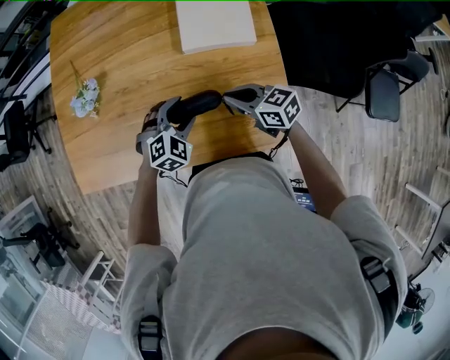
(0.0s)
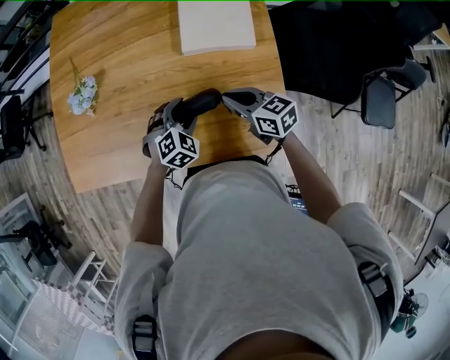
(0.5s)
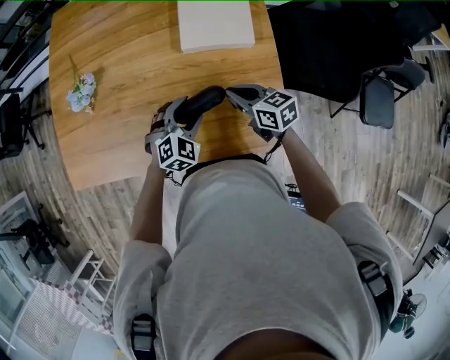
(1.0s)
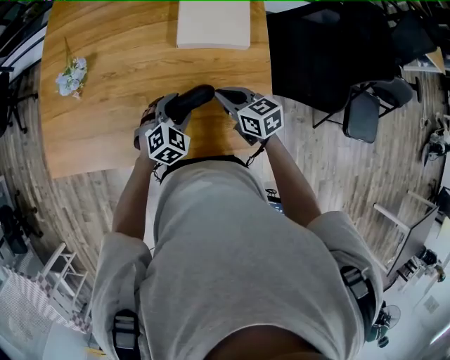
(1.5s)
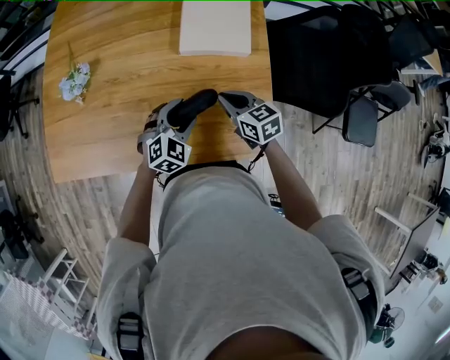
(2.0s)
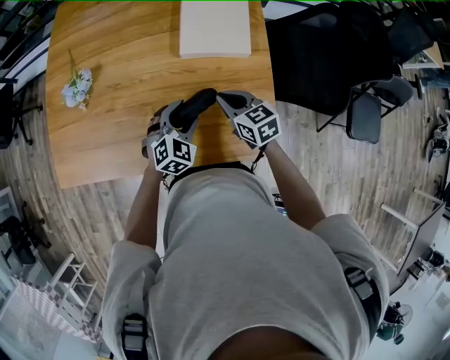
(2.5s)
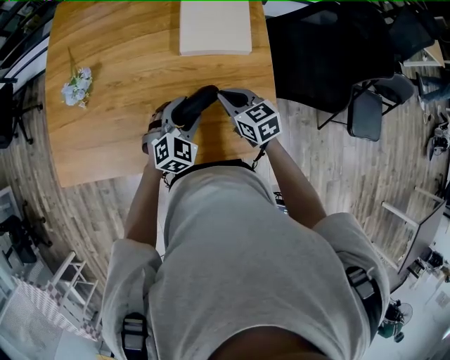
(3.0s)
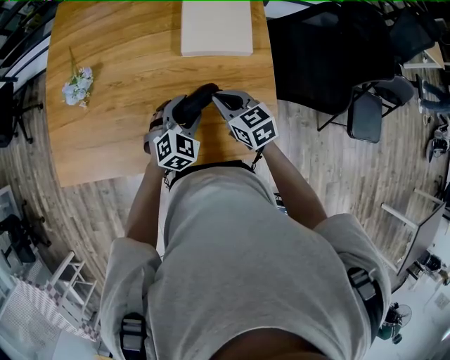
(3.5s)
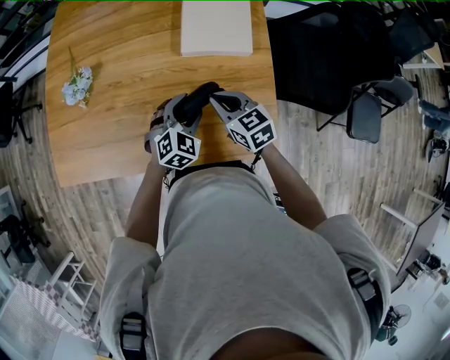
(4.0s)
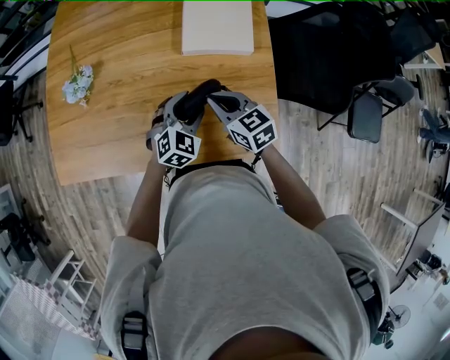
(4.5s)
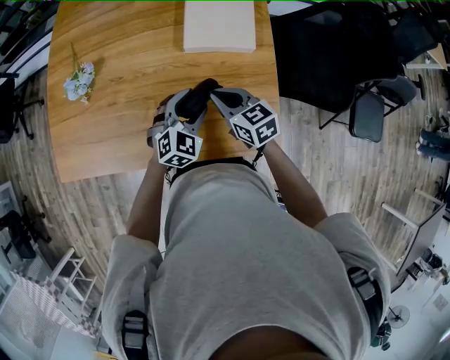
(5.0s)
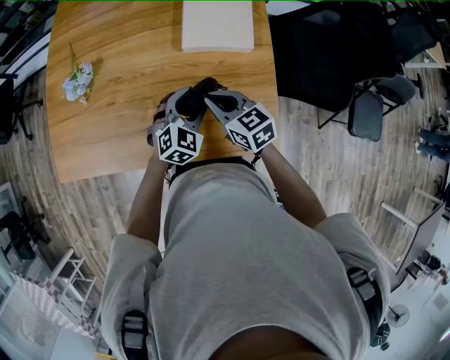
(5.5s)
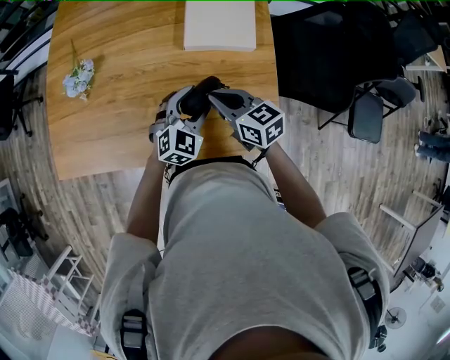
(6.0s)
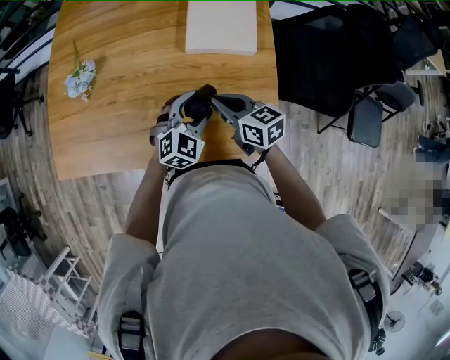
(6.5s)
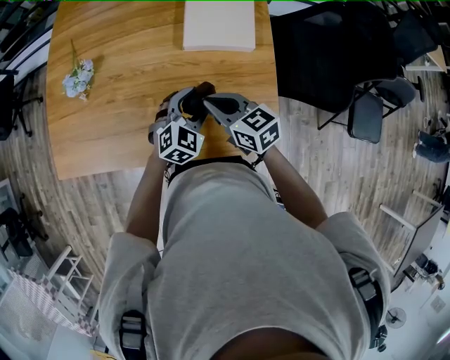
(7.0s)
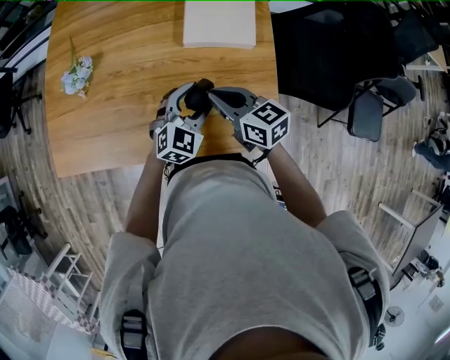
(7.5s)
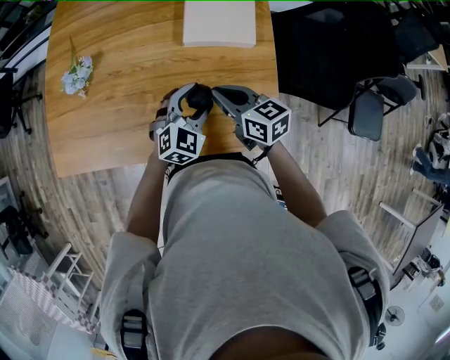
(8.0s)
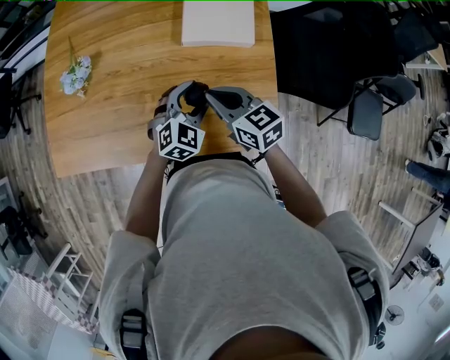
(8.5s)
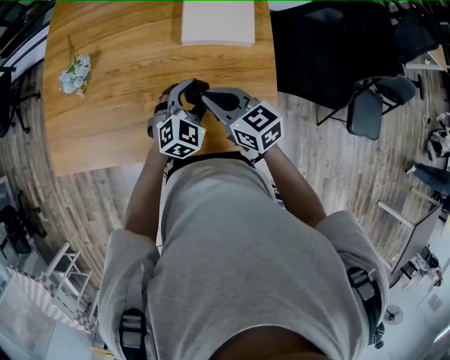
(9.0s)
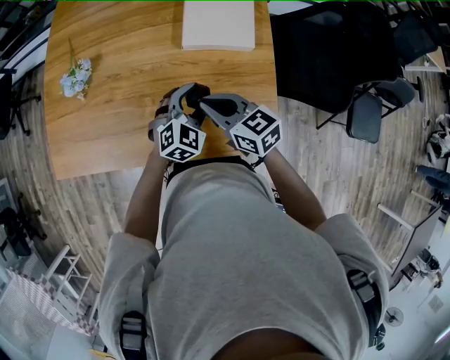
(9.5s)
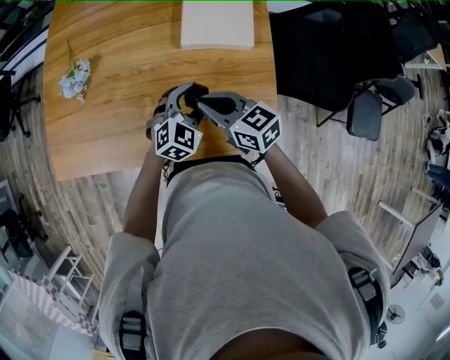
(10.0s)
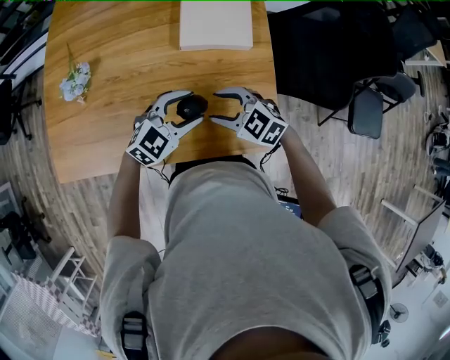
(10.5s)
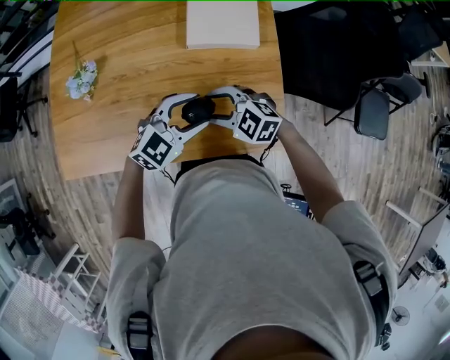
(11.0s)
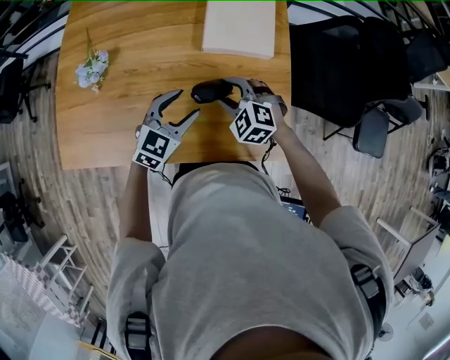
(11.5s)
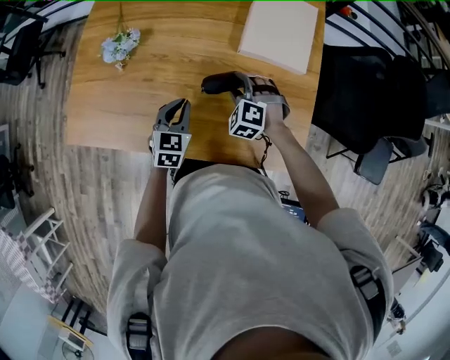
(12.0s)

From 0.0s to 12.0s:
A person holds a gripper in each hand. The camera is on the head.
From 0.0s to 2.0s: The grippers stay close to where they were, moving slightly.
From 2.0s to 4.0s: The grippers make only small movements.
From 4.0s to 6.0s: There are only small adjustments of the grippers.
From 6.0s to 10.0s: The grippers move only a little.
From 10.0s to 12.0s: The left gripper goes upward and returns, some 5 cm each way, rotates some 40 degrees, and closes up. The right gripper heads downward, covering approximately 10 cm, twists about 60 degrees counterclockwise, seen from behind, and opens up.

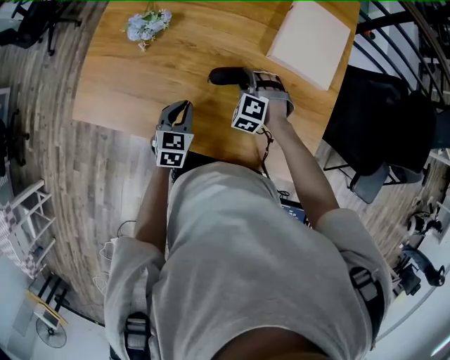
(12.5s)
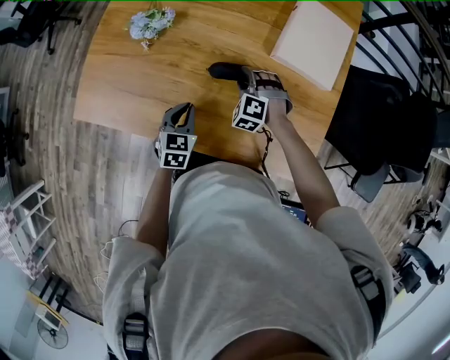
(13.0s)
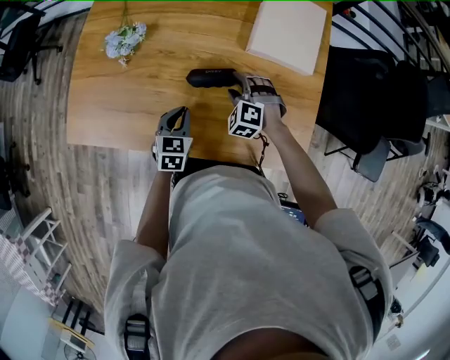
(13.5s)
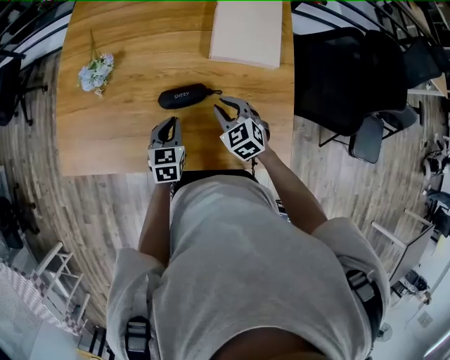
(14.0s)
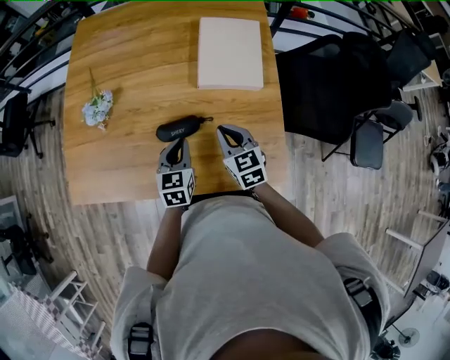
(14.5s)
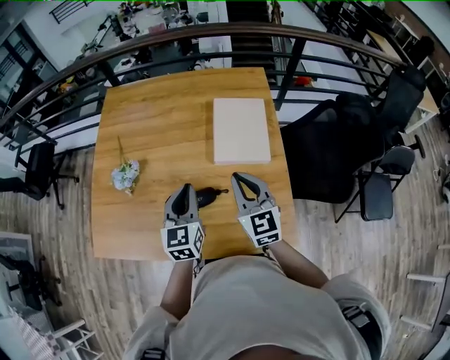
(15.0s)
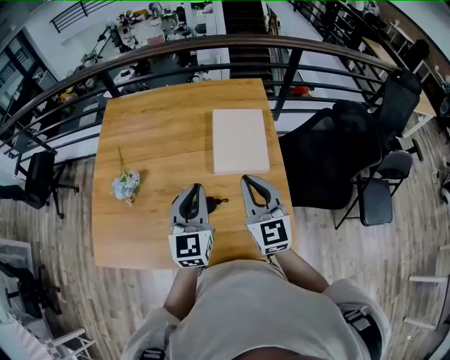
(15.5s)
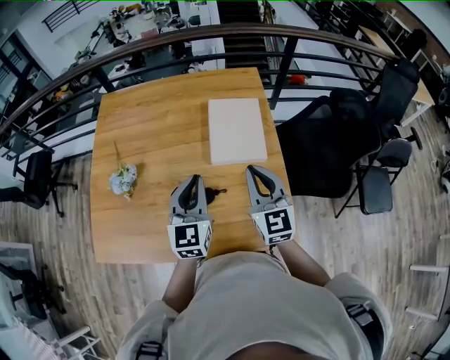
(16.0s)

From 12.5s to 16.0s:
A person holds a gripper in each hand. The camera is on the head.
From 12.5s to 14.5s: The left gripper goes approximately 15 cm to the right and upward; the right gripper goes about 20 cm upward, to the right and backward, rolls clockwise, seen from behind, by approximately 70 degrees, and closes.
From 14.5s to 16.0s: Both grippers travel together upward, about 20 cm. The right gripper changes its angle by about 30 degrees, while the left gripper rotates approximately 30 degrees.

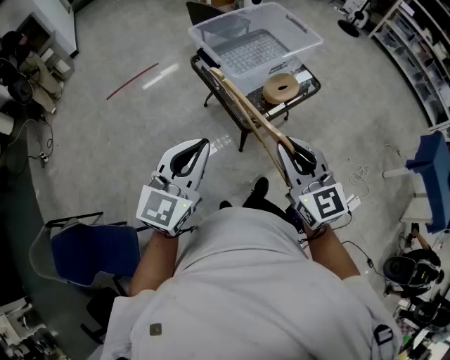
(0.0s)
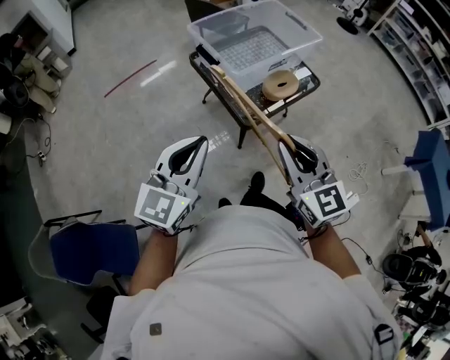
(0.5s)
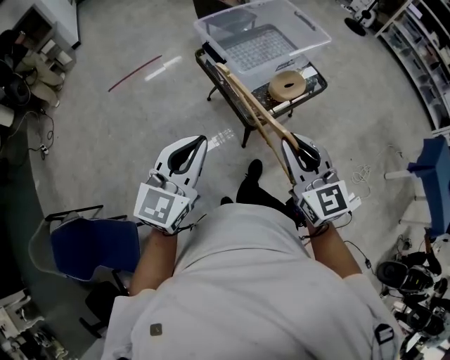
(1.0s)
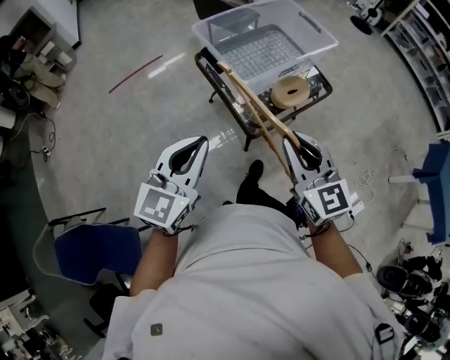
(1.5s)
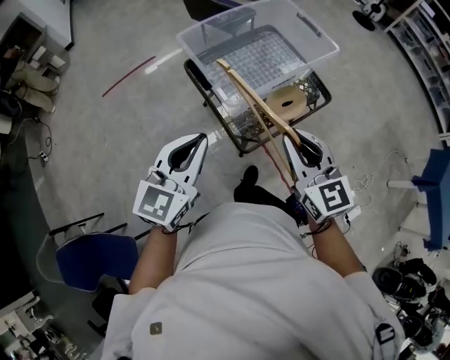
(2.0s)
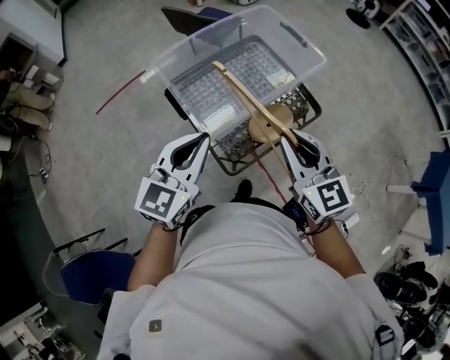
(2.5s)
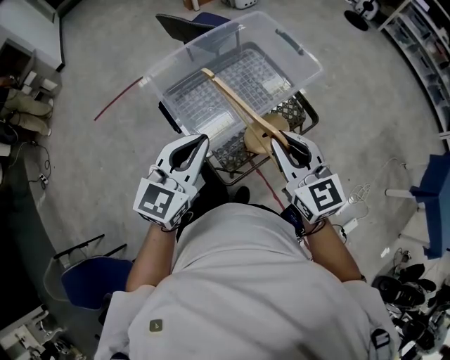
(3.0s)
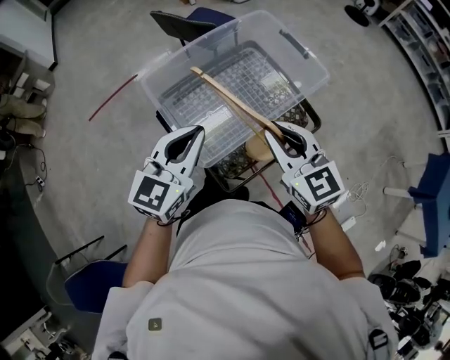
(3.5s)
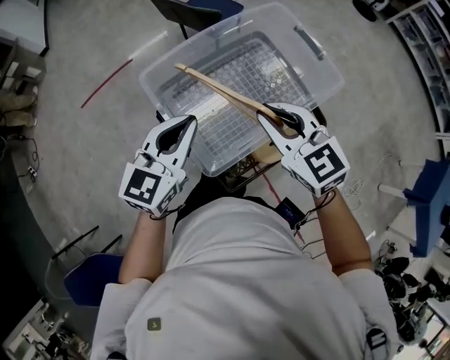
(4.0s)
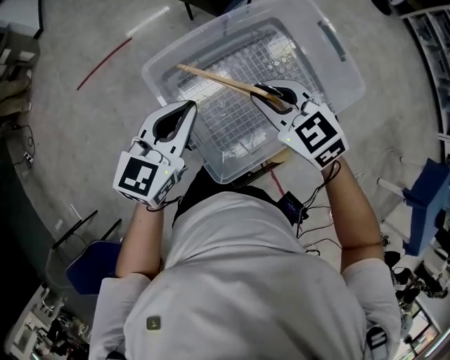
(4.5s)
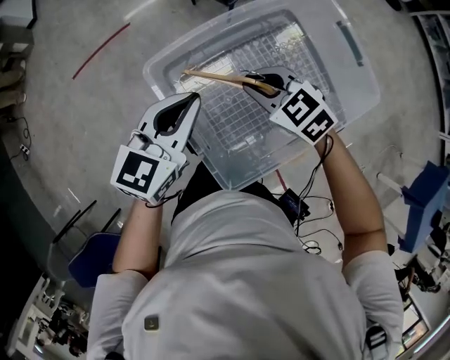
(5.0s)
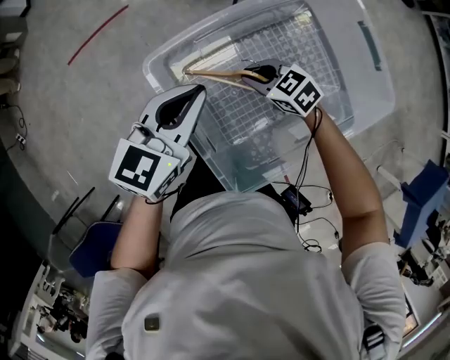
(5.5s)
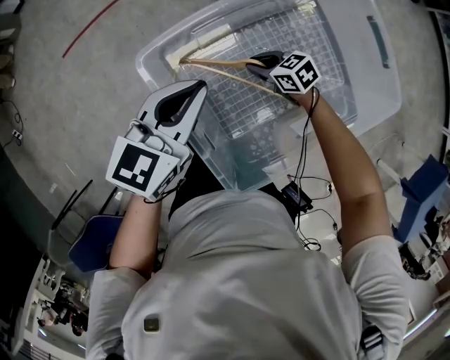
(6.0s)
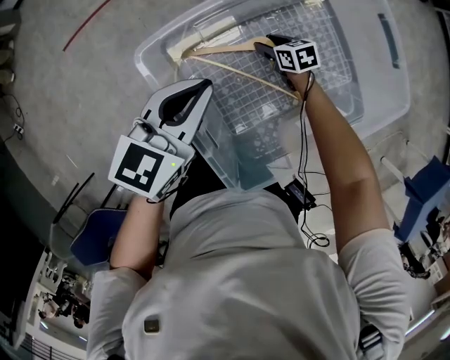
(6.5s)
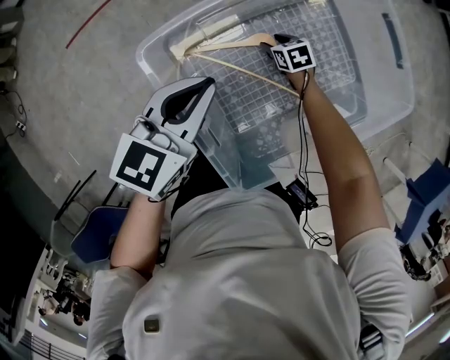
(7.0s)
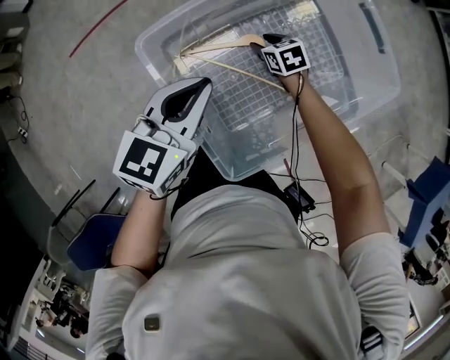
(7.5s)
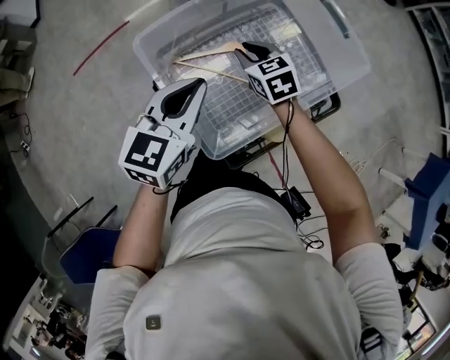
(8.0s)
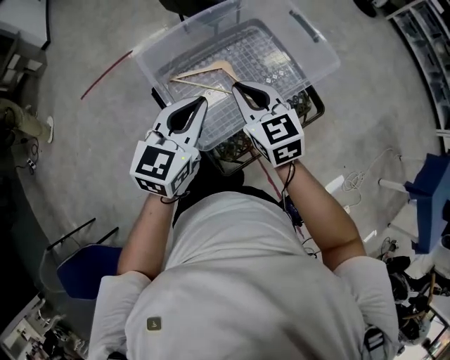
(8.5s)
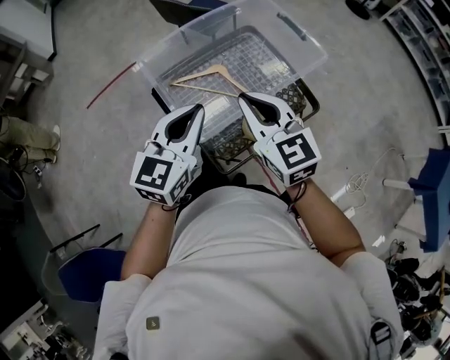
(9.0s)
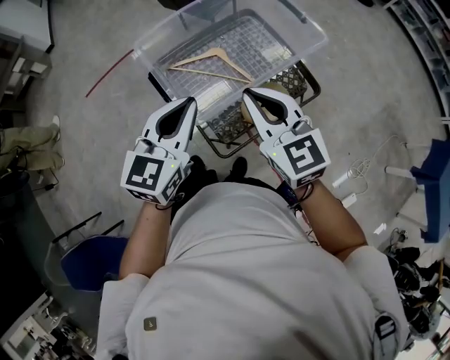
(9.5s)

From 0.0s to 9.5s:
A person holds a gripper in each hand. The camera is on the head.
From 0.0s to 2.0s: The two grippers go roughly 20 cm forward.
From 2.0s to 4.0s: Both grippers travel together forward, some 30 cm. The right gripper swivels some 20 degrees.
From 4.0s to 5.5s: The right gripper heads downward and forward, covering approximately 35 cm, and swivels about 40 degrees; the left gripper heads forward and downward, covering some 20 cm.
From 5.5s to 7.5s: The left gripper changes place by about 5 cm. The right gripper heads downward and to the right, covering roughly 15 cm, changes its angle by some 30 degrees, and opens up.
From 7.5s to 9.5s: The right gripper moves upward and backward, roughly 50 cm, tilts its fingers roughly 40 degrees upward, and closes its fingers. Meanwhile the left gripper moves backward, to the right and upward, roughly 25 cm.

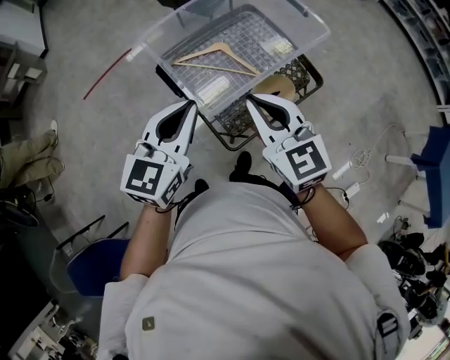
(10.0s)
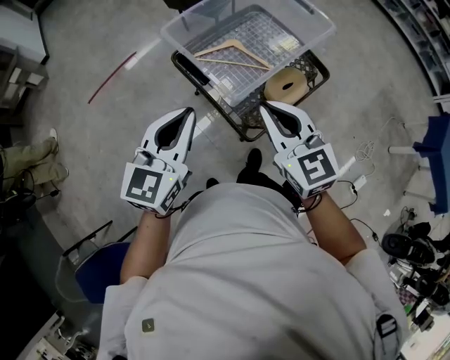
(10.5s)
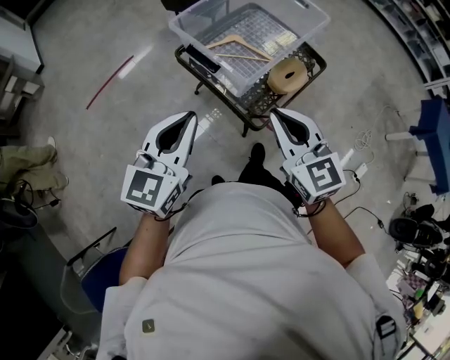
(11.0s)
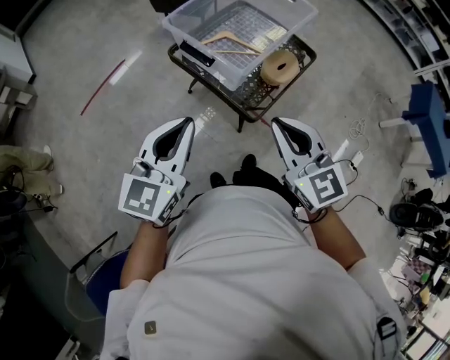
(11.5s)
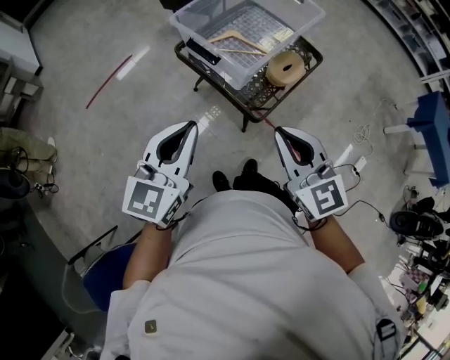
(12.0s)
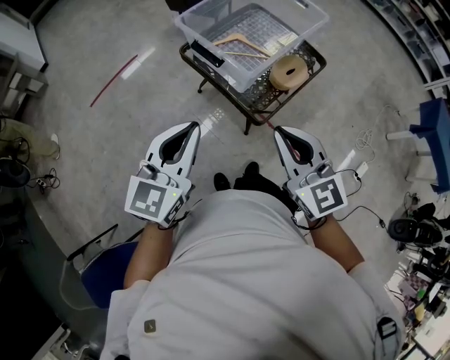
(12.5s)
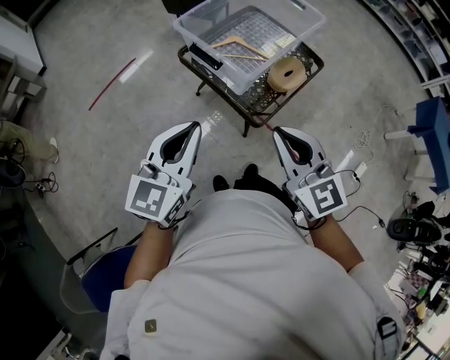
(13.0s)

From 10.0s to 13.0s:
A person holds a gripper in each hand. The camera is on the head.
From 10.0s to 11.5s: The grippers both shift backward and to the left by roughly 25 cm.
From 11.5s to 13.0s: There are only small adjustments of the grippers.
